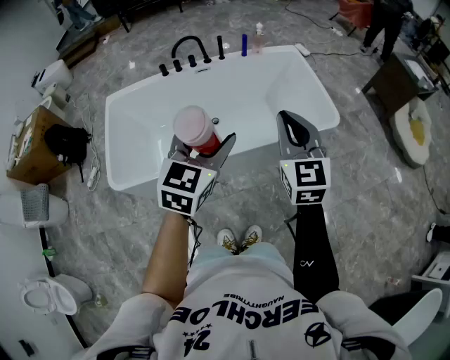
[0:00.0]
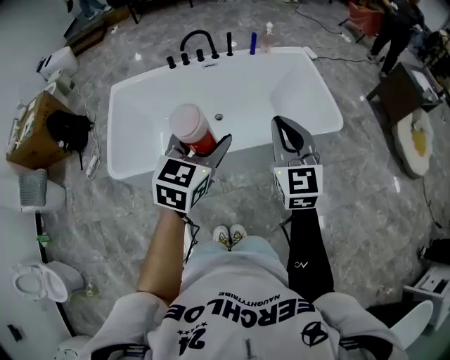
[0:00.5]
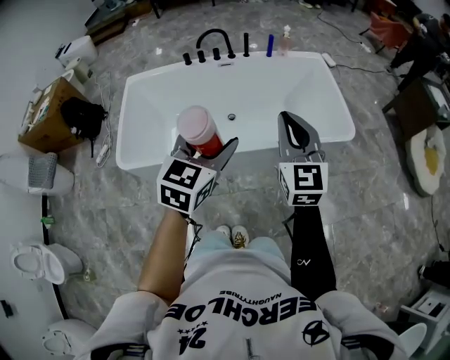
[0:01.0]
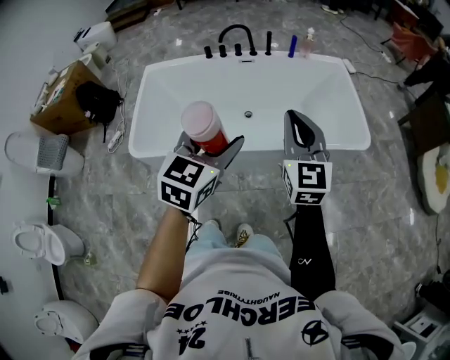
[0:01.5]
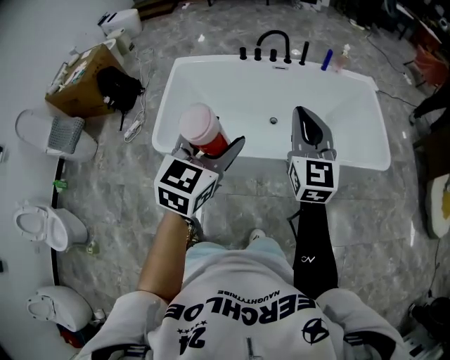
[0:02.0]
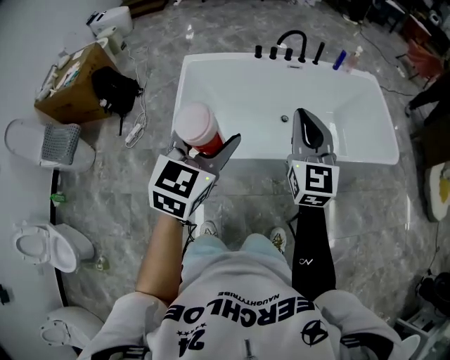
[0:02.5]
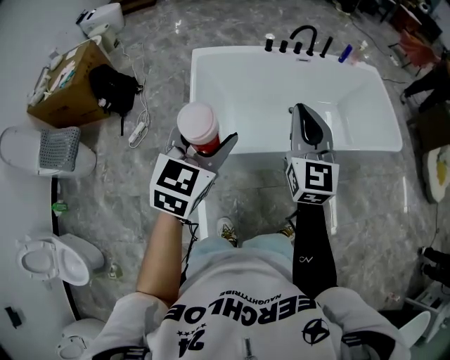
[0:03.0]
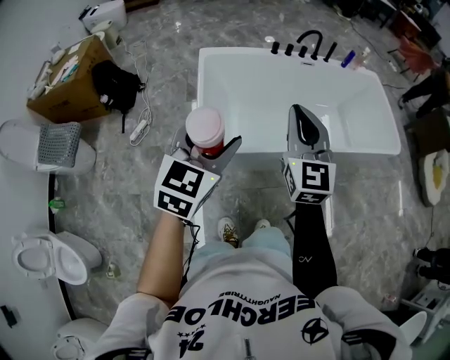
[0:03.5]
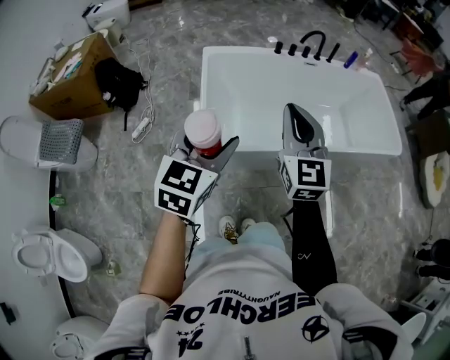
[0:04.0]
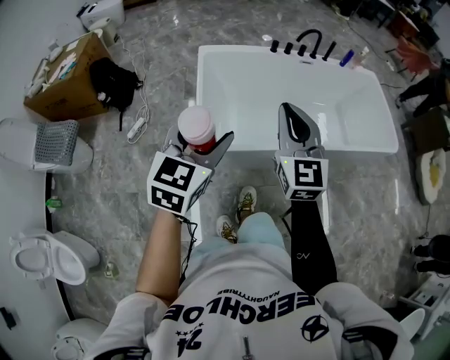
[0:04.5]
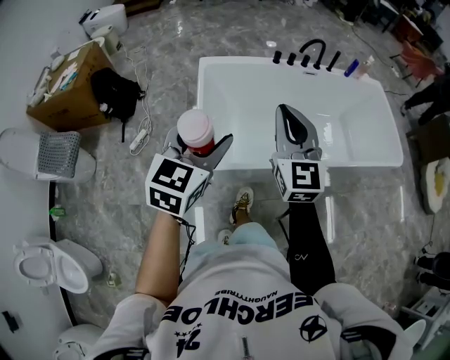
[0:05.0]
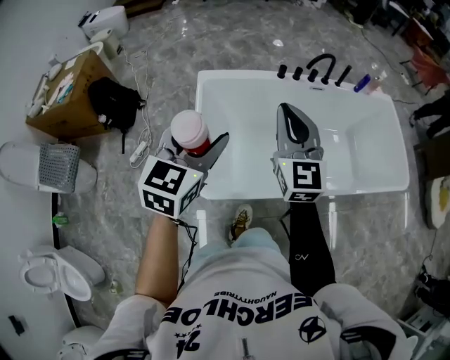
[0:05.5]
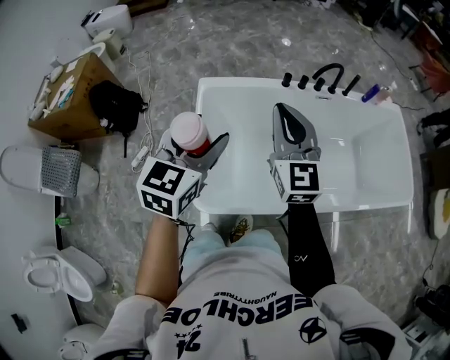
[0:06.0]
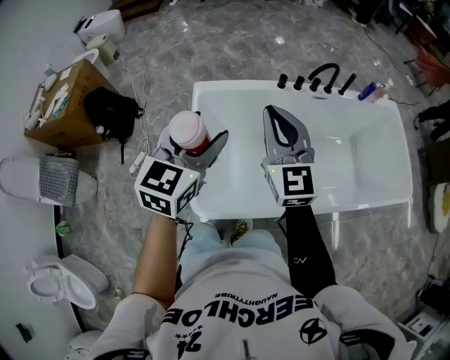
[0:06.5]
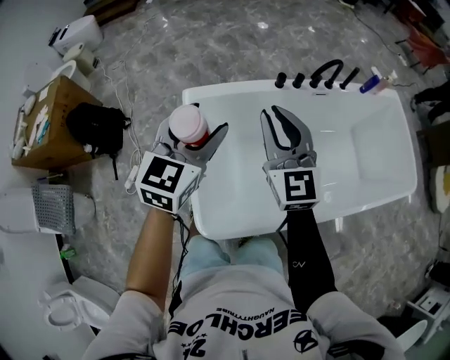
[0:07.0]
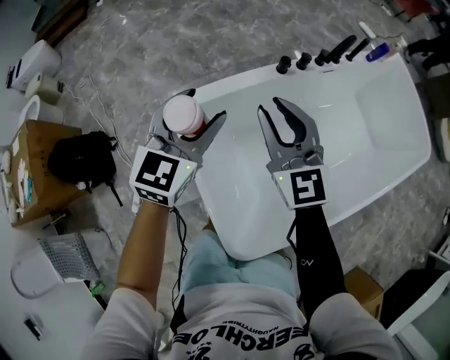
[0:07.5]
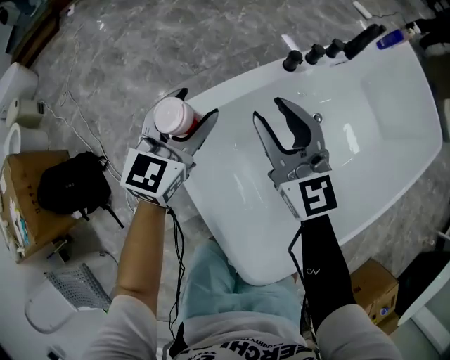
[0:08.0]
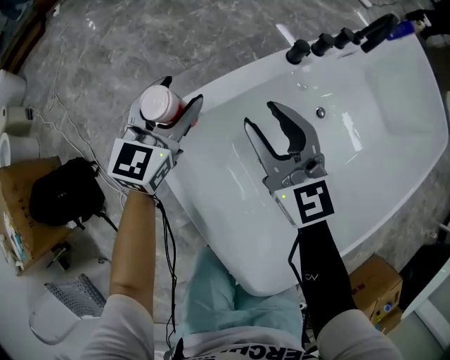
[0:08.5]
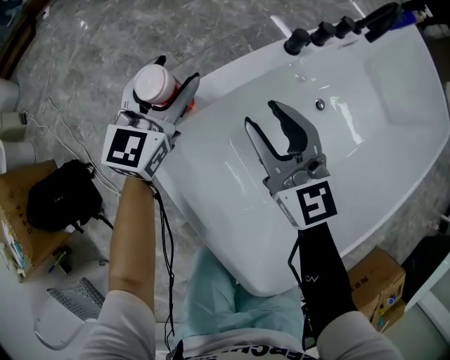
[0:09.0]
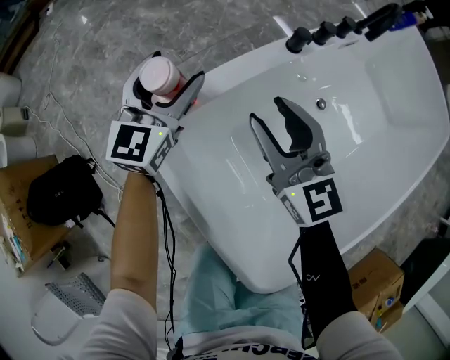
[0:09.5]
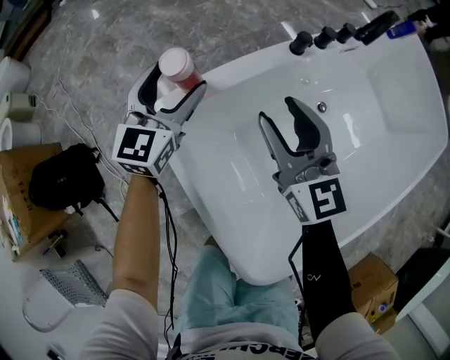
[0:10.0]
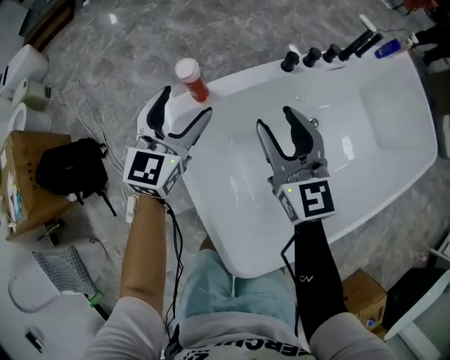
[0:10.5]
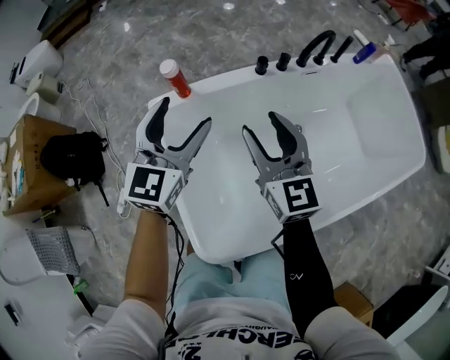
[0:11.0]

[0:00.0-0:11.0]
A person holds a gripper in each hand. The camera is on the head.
0:00.0 to 0:02.0: The two grippers go approximately 15 cm to the left.
0:02.0 to 0:03.5: Both grippers move to the left, some 35 cm.
0:03.5 to 0:05.5: Both grippers move forward, roughly 20 cm.
0:05.5 to 0:07.5: The left gripper heads forward, covering roughly 40 cm, and changes its angle by about 20 degrees. Meanwhile the right gripper heads forward, downward and to the left, covering approximately 35 cm, and opens up.
0:07.5 to 0:09.0: The right gripper is displaced downward by roughly 20 cm; the left gripper shifts about 30 cm downward and forward.
0:09.0 to 0:11.0: The right gripper moves upward, backward and to the right, approximately 25 cm; the left gripper shifts roughly 30 cm backward, upward and to the right.

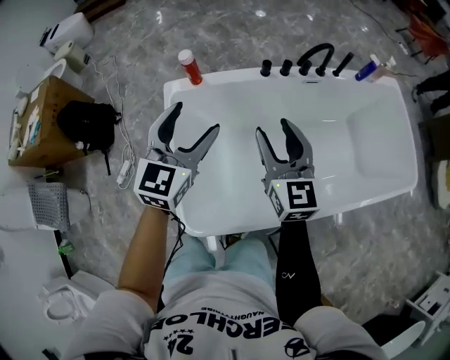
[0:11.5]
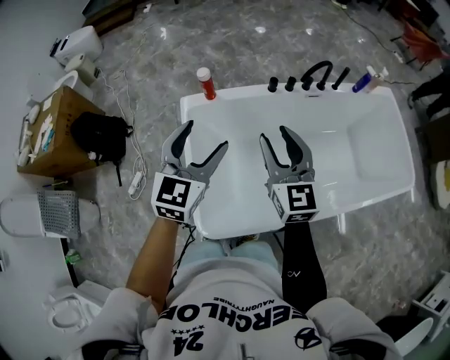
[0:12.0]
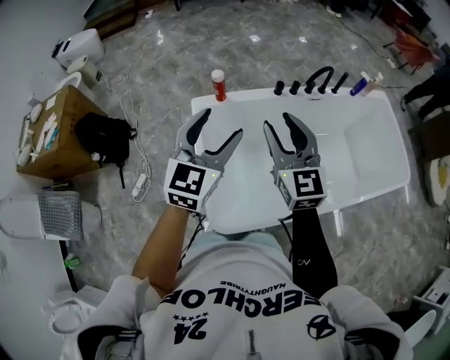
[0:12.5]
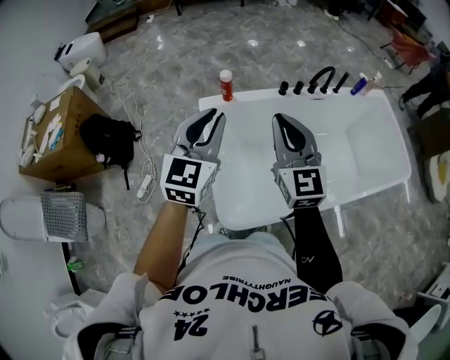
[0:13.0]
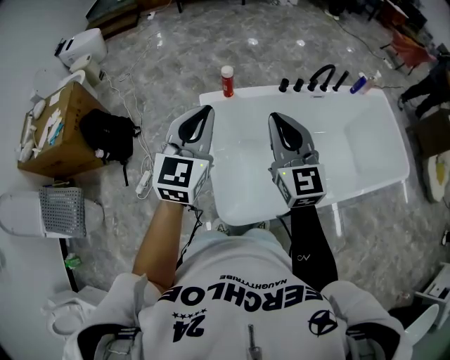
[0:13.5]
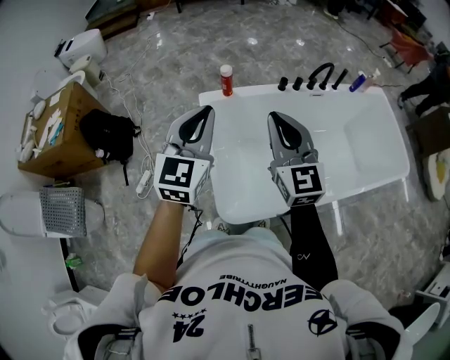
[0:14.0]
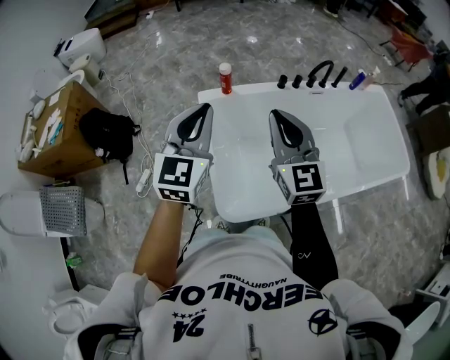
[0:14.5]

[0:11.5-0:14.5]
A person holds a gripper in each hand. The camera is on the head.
0:11.5 to 0:13.0: Both grippers travel together to the left, upward and backward, some 20 cm. The right gripper closes its fingers. Meanwhile the left gripper closes.
0:13.0 to 0:14.5: The grippers make only small movements.

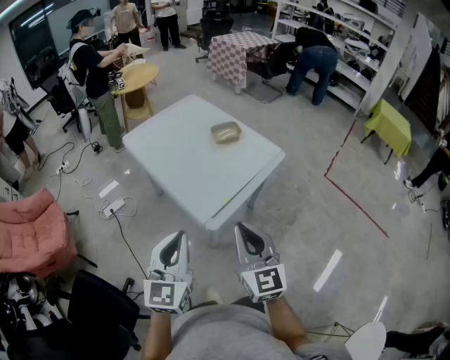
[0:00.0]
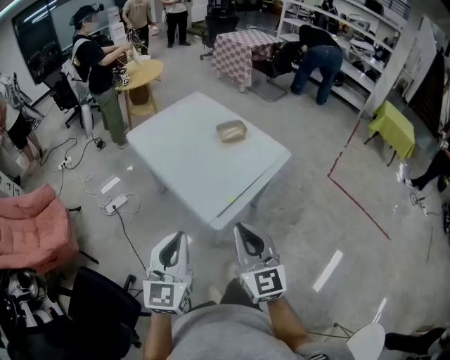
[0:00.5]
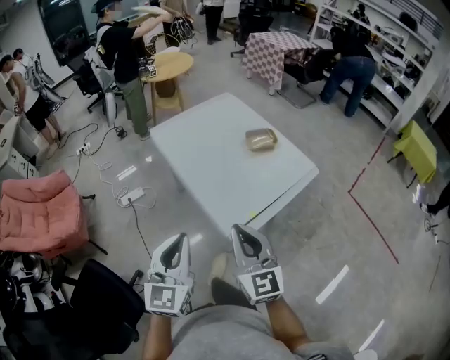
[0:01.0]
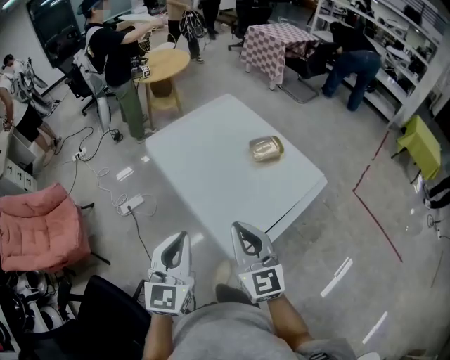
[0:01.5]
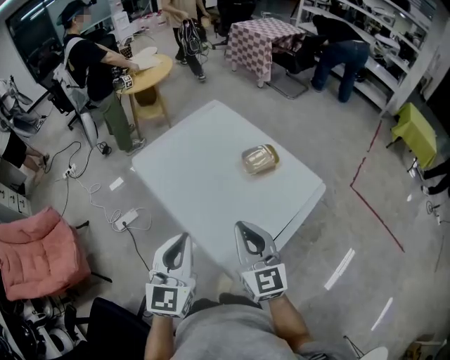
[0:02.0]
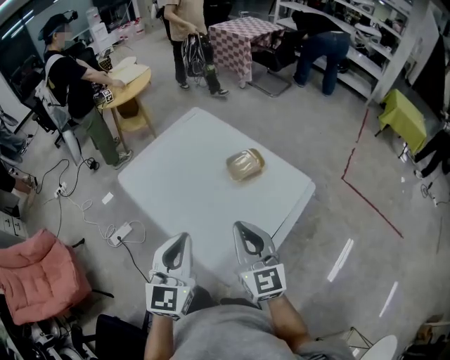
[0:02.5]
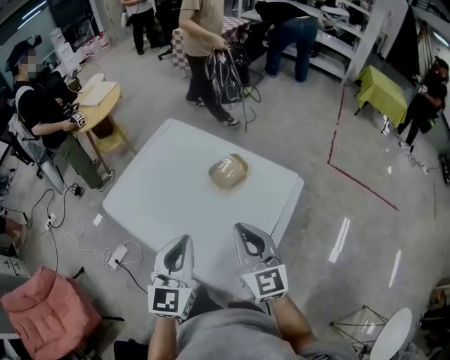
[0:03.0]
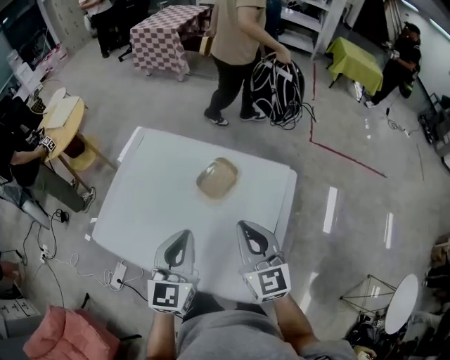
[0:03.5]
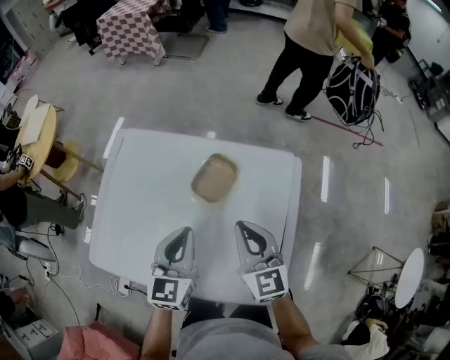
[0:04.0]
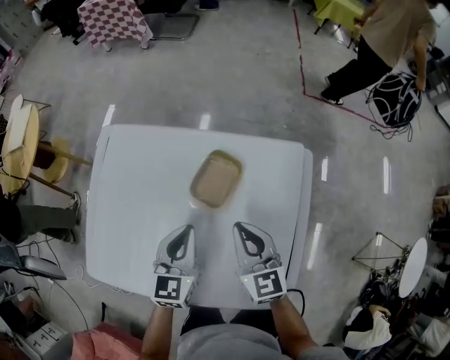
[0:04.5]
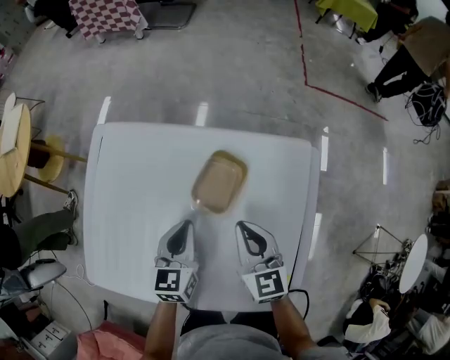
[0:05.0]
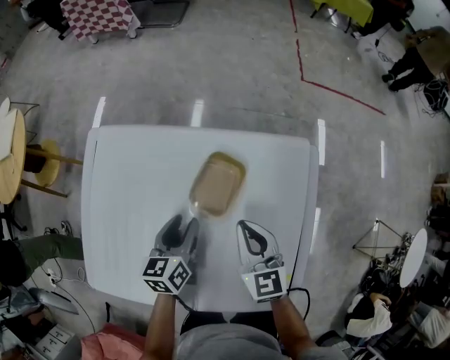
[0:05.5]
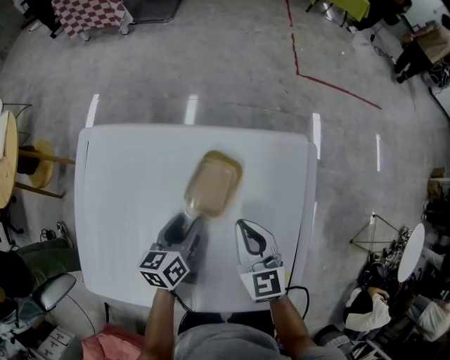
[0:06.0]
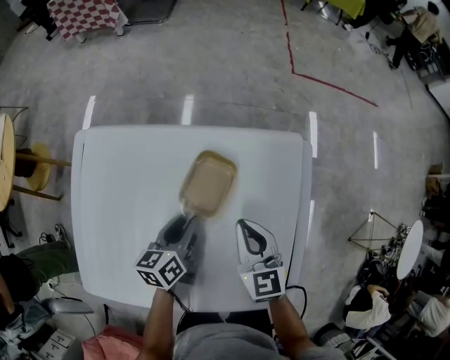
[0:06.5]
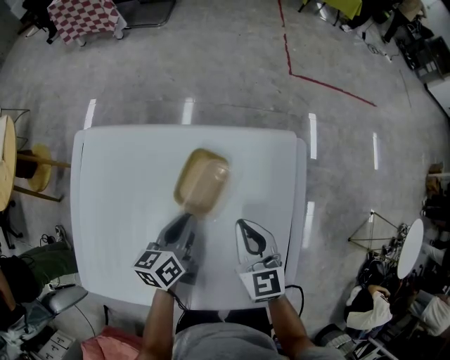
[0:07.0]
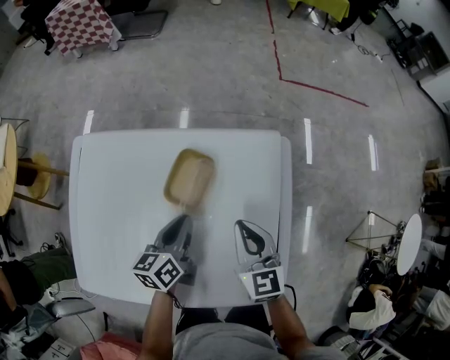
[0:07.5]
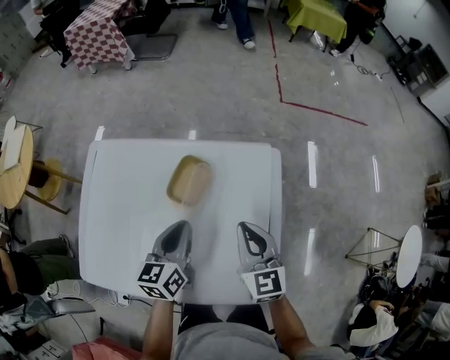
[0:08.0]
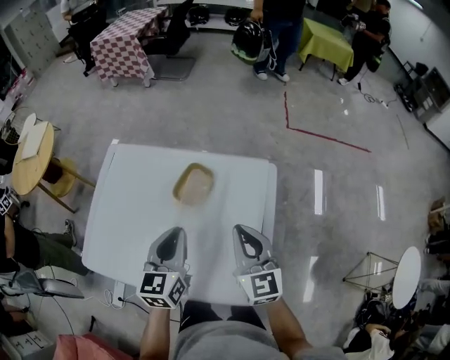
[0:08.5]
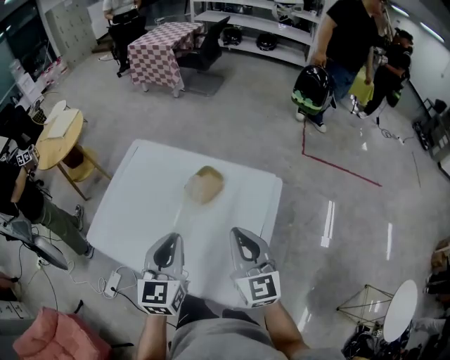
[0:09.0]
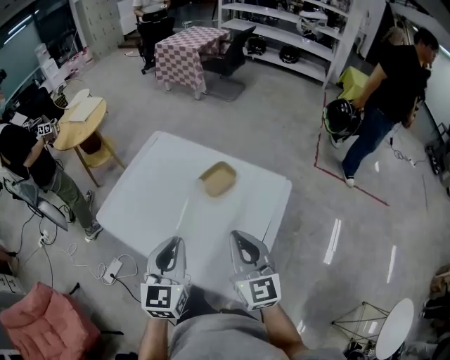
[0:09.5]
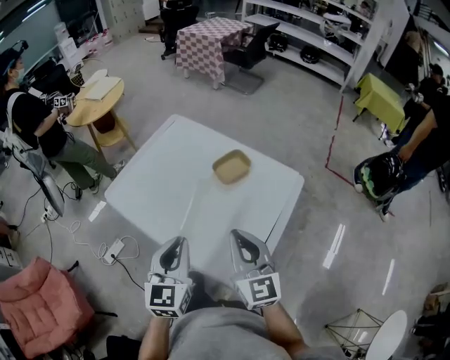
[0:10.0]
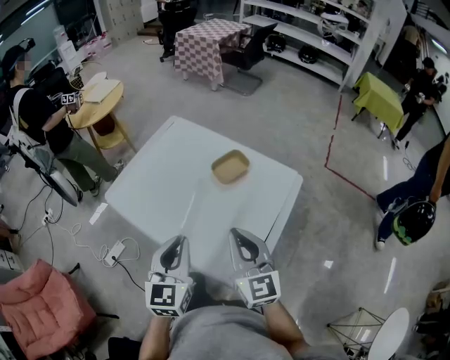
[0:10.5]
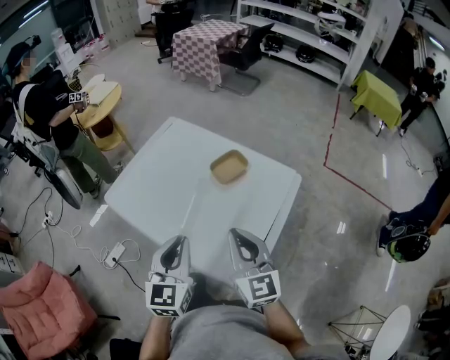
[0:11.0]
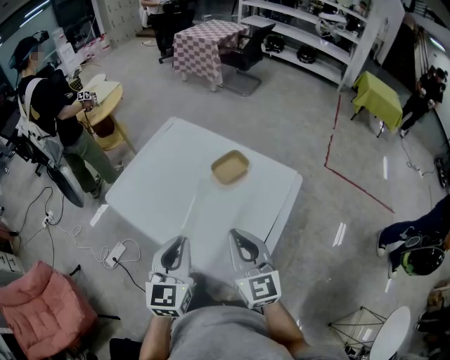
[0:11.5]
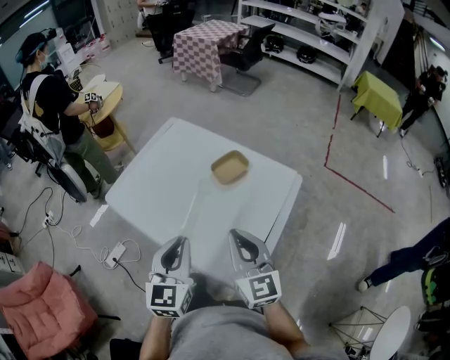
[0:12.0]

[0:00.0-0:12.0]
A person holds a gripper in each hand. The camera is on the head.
0:00.0 to 0:02.0: Both grippers travel together forward, approximately 30 cm.
0:02.0 to 0:04.0: The right gripper moves approximately 25 cm, and rotates approximately 40 degrees, while the left gripper changes place by roughly 35 cm, and swivels approximately 40 degrees.
0:04.0 to 0:06.0: Both grippers travel together downward and forward, some 20 cm. The left gripper changes its angle by about 40 degrees, and opens its fingers.
0:06.0 to 0:08.0: The right gripper is displaced to the right, upward and backward by some 15 cm; the left gripper heads upward, to the right and backward, covering roughly 15 cm, and closes.
0:08.0 to 0:10.0: The right gripper ends up approximately 25 cm from where it was, and changes its angle by some 30 degrees. Meanwhile the left gripper shifts by roughly 30 cm, and turns by roughly 40 degrees.
0:10.0 to 0:12.0: Neither gripper changes place.

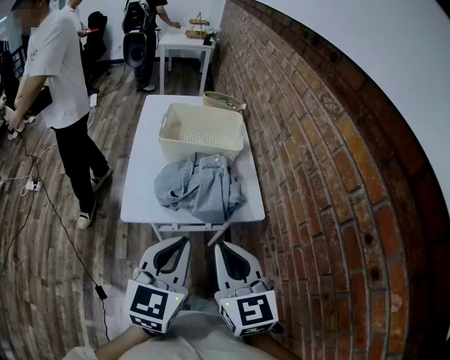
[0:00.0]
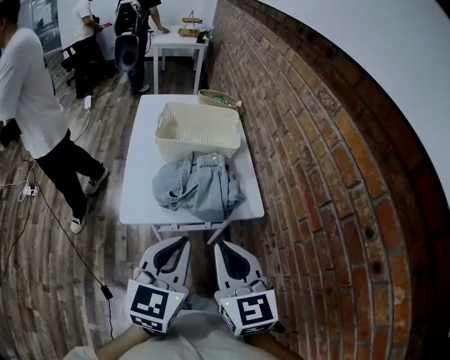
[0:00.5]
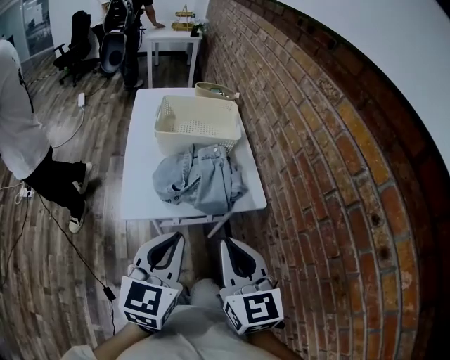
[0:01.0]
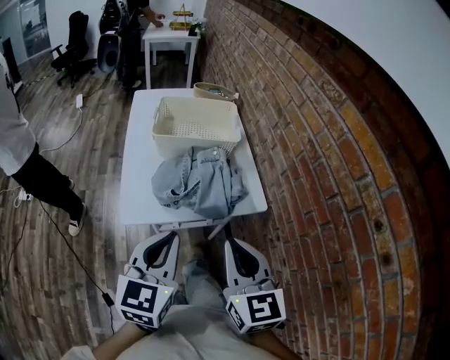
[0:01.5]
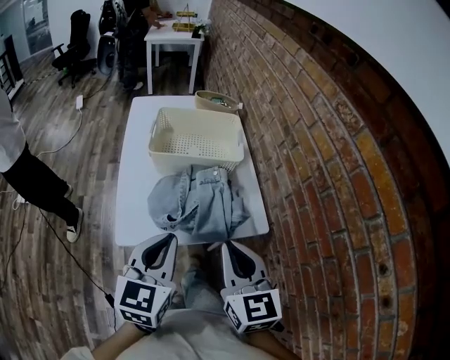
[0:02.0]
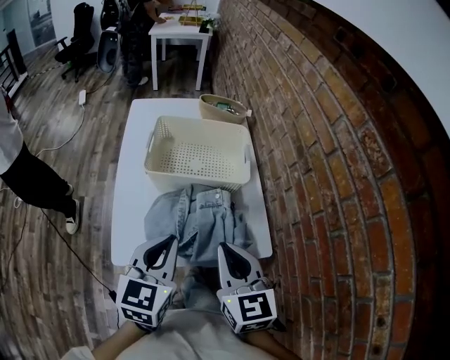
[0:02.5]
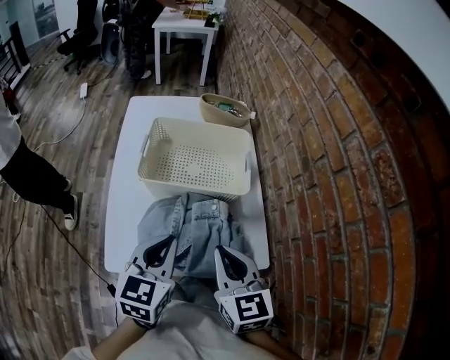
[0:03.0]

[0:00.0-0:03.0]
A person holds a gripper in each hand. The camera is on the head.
0:00.0 to 0:01.5: The left gripper moves roughly 5 cm.
0:01.5 to 0:03.0: Both grippers travel together forward, about 20 cm.
